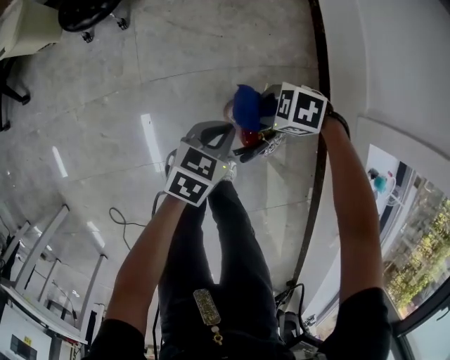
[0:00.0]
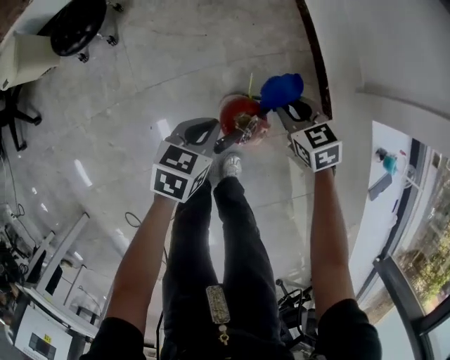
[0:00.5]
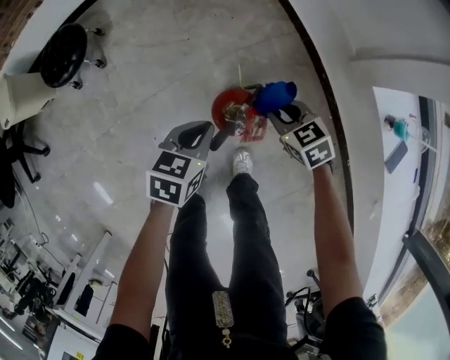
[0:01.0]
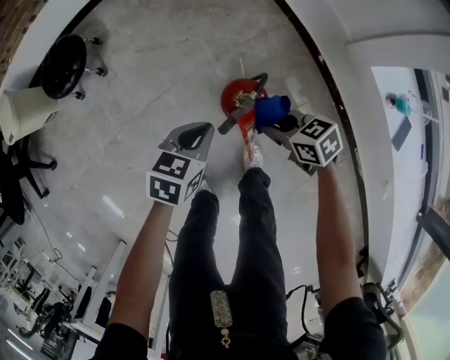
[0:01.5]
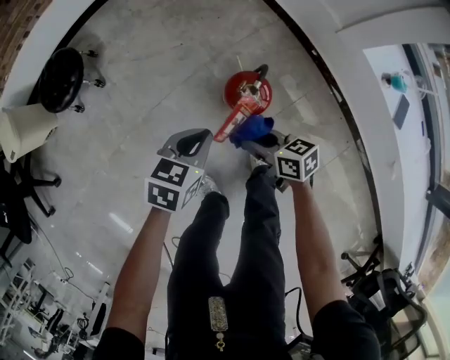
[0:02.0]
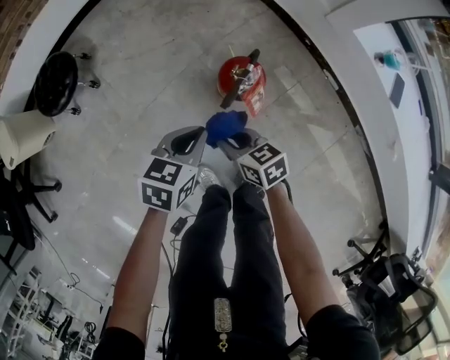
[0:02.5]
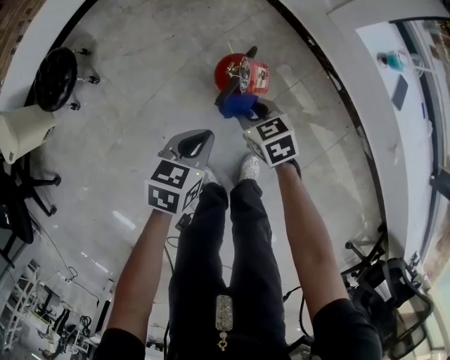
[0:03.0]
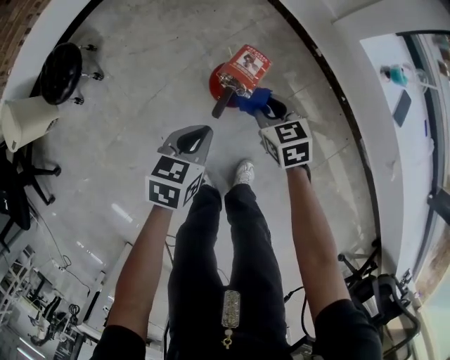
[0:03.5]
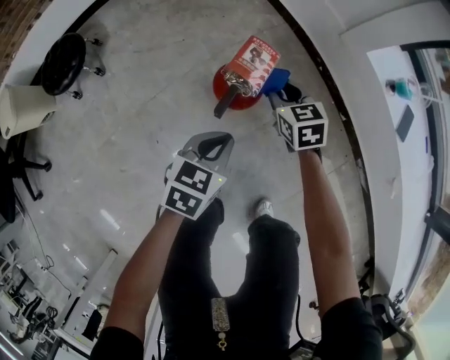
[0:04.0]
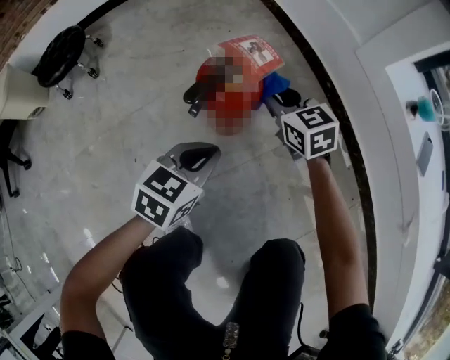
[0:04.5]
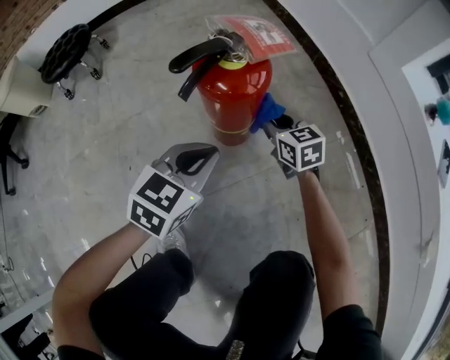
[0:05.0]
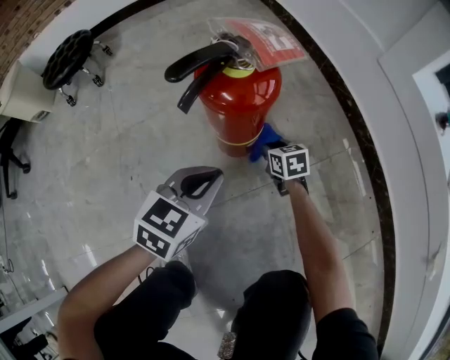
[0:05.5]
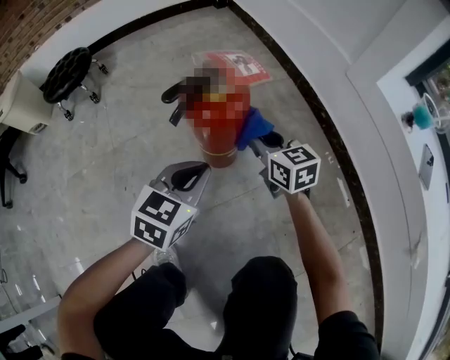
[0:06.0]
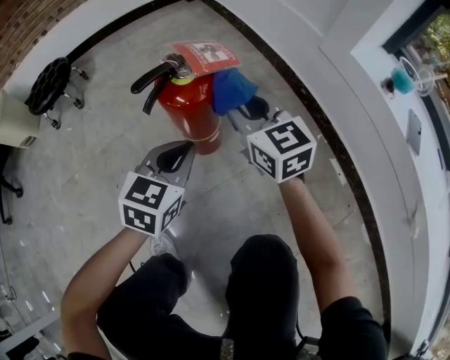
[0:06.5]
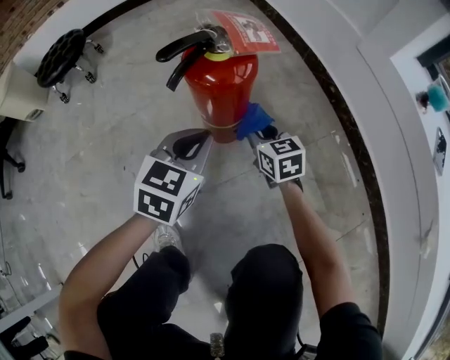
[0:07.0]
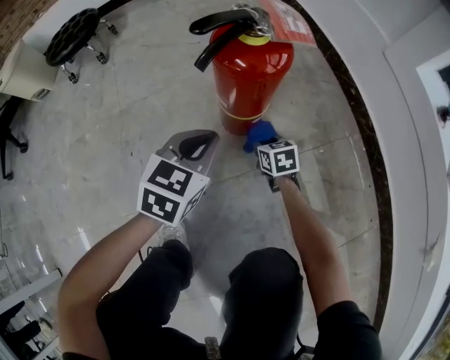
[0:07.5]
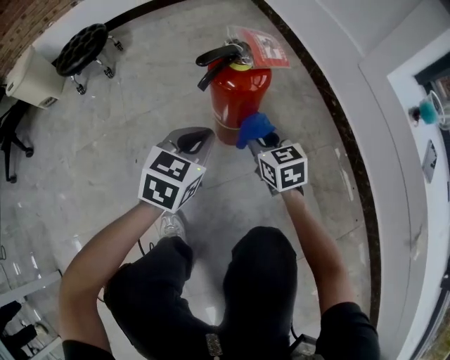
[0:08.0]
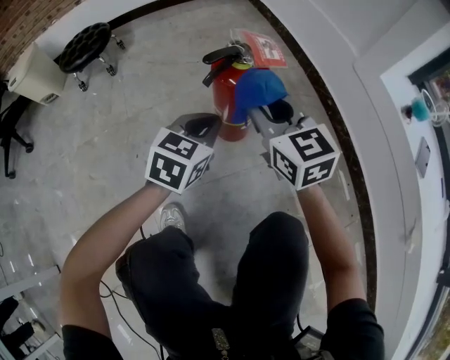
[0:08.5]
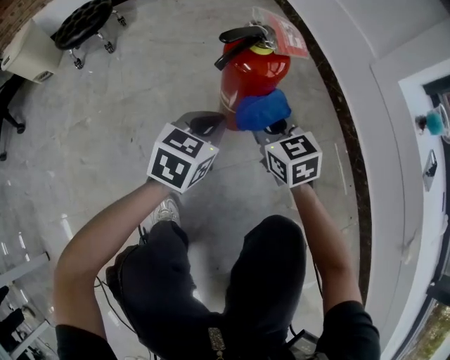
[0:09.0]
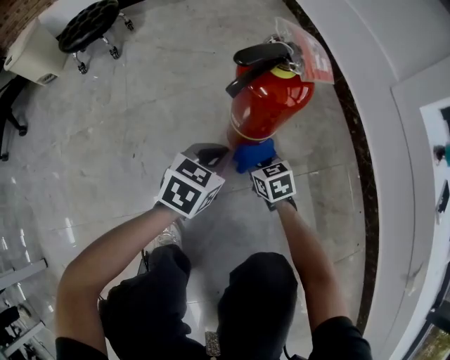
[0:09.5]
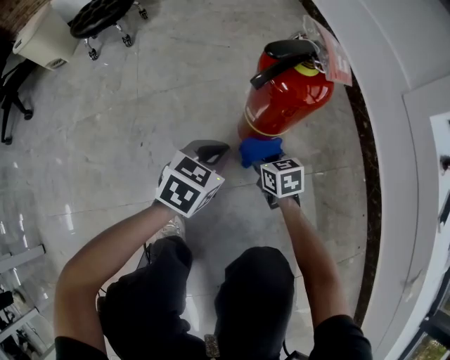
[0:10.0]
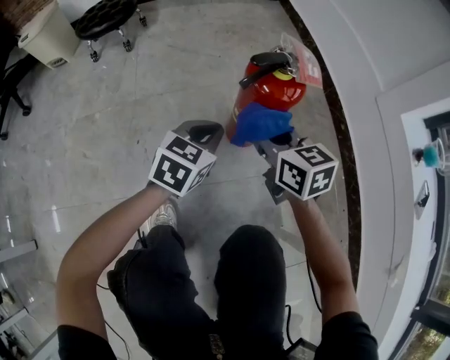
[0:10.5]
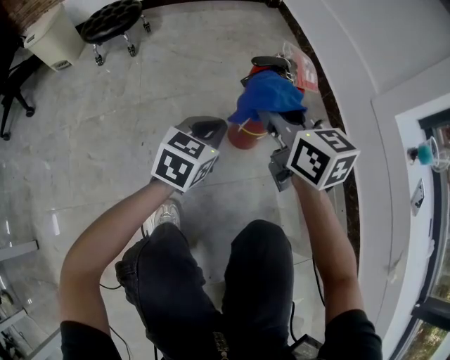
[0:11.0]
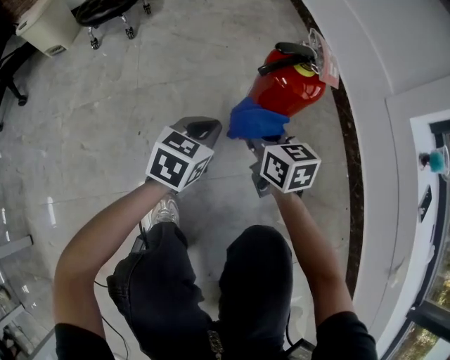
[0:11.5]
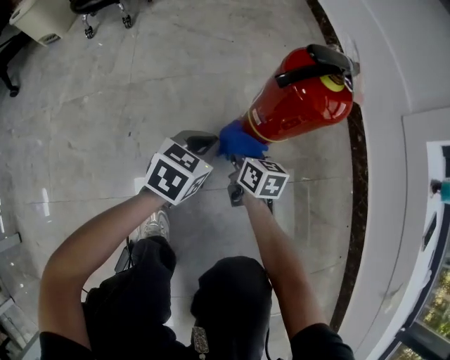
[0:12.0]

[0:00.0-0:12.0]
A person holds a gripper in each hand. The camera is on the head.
0:00.0 to 0:02.0: The right gripper changes place by approximately 15 cm, and changes its angle by roughly 90 degrees; the left gripper changes place by some 5 cm, and turns by about 20 degrees.
0:02.0 to 0:04.0: The left gripper travels to the right by approximately 10 cm. The right gripper heads forward and to the right, covering roughly 15 cm, and swivels some 40 degrees.
0:04.0 to 0:06.0: Both grippers travel together downward, about 15 cm. The right gripper swivels roughly 20 degrees.
0:06.0 to 0:08.0: The right gripper moves up and down over approximately 35 cm, changing direction 2 times; the left gripper reaches about 5 cm downward, then returns.
0:08.0 to 0:10.0: The two grippers go about 15 cm downward.
0:10.0 to 0:12.0: The right gripper travels upward and back again, about 35 cm each way, and turns by approximately 20 degrees; the left gripper moves roughly 10 cm upward and comes back.

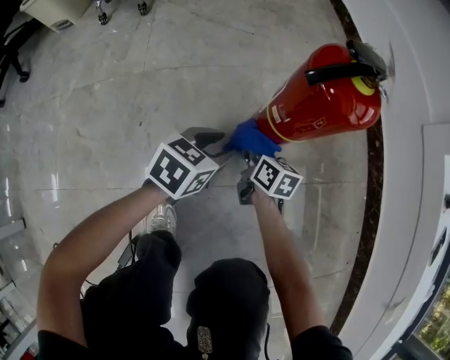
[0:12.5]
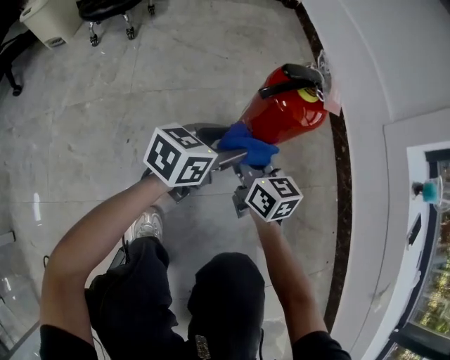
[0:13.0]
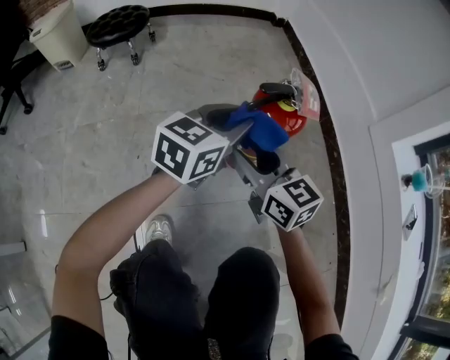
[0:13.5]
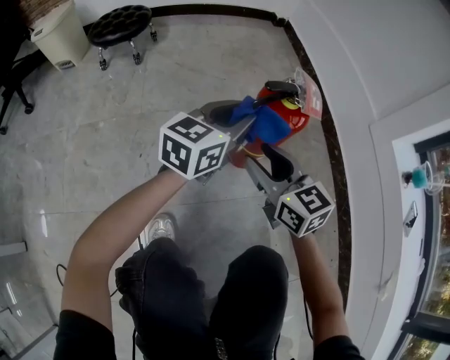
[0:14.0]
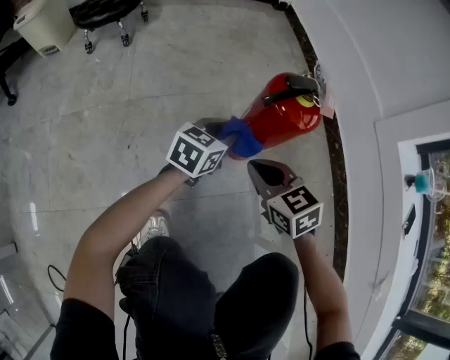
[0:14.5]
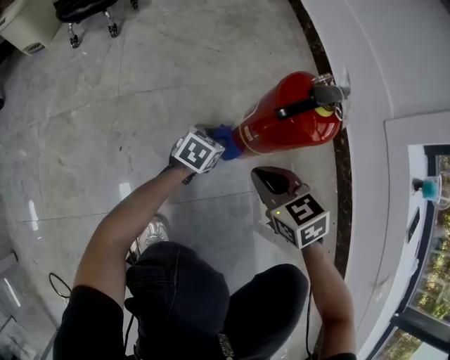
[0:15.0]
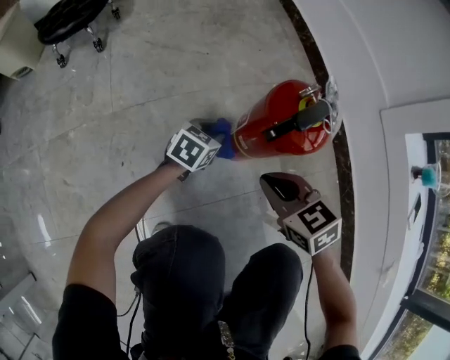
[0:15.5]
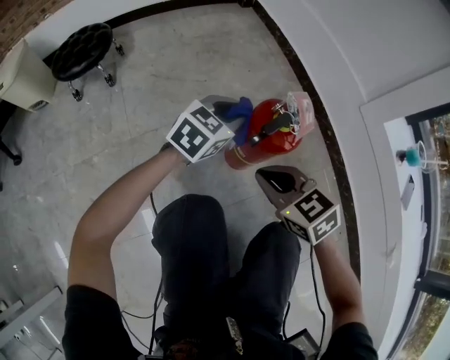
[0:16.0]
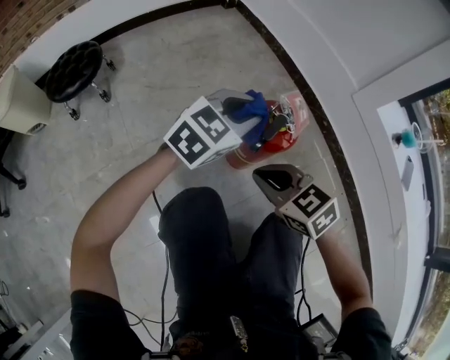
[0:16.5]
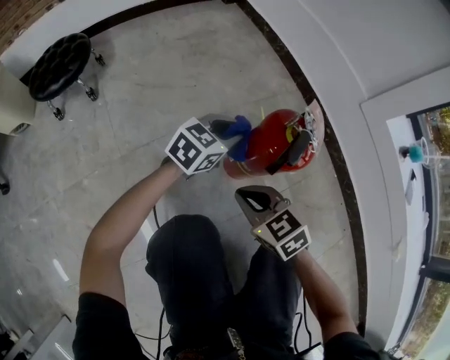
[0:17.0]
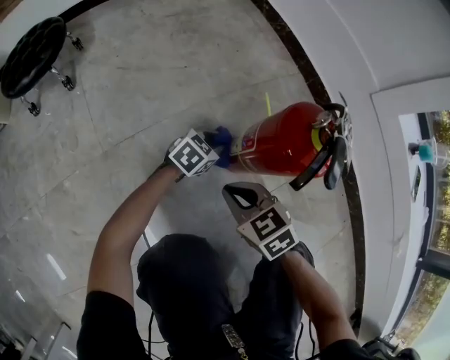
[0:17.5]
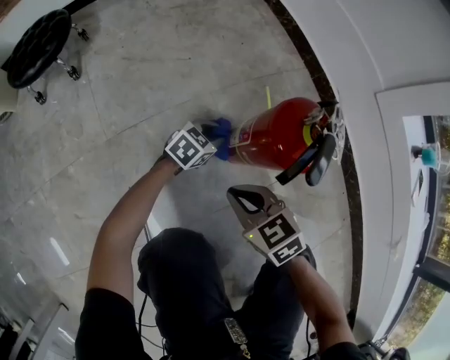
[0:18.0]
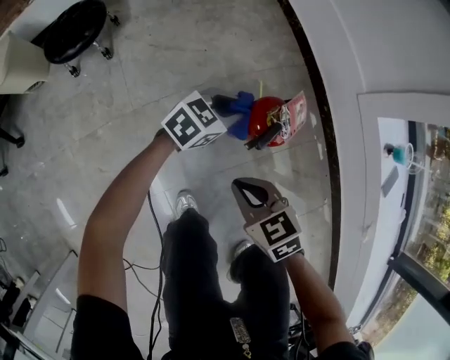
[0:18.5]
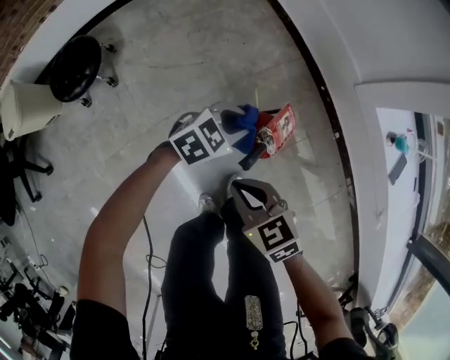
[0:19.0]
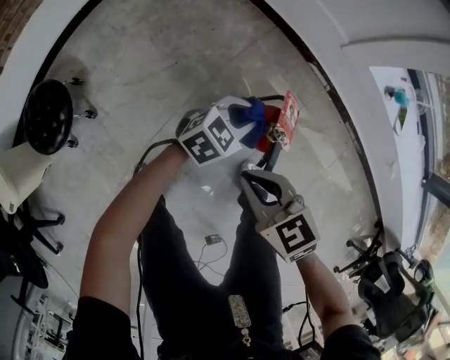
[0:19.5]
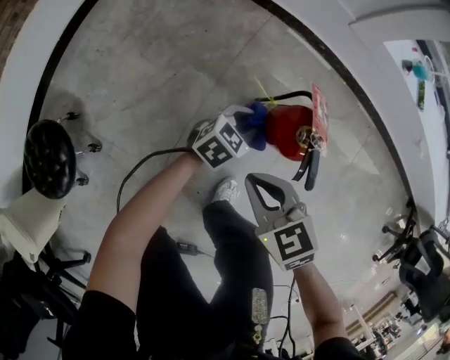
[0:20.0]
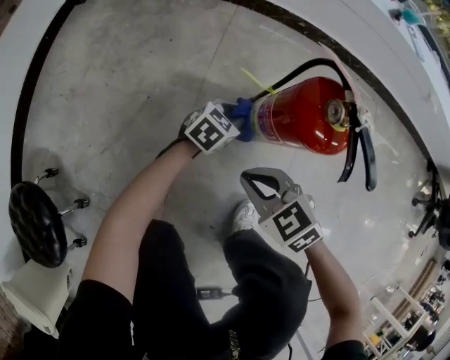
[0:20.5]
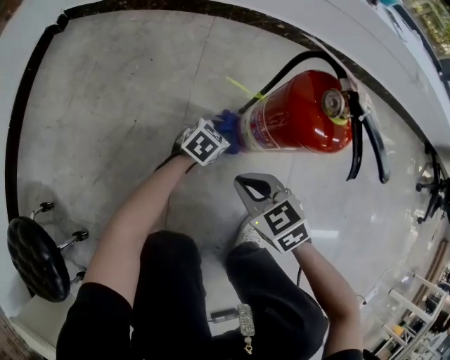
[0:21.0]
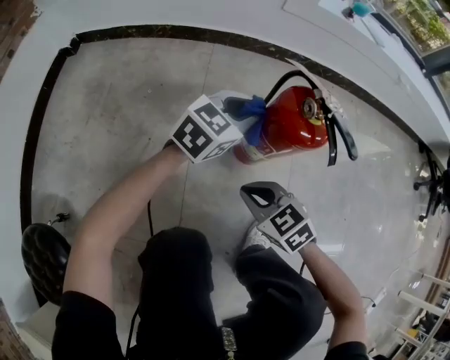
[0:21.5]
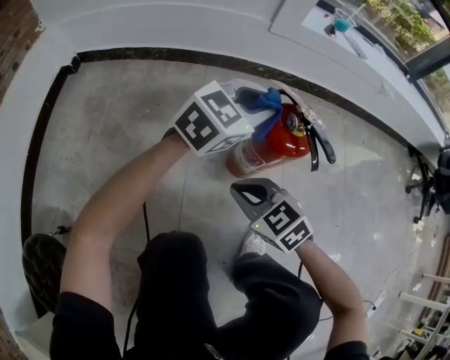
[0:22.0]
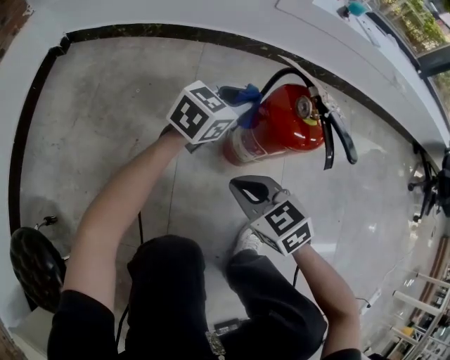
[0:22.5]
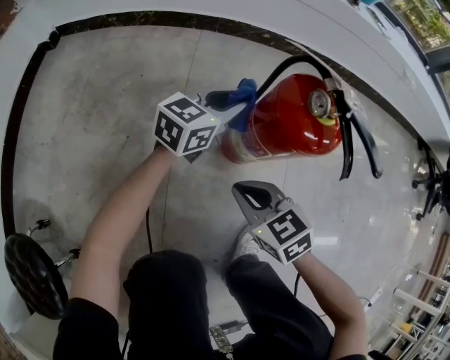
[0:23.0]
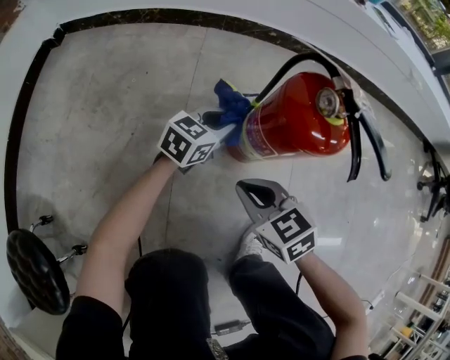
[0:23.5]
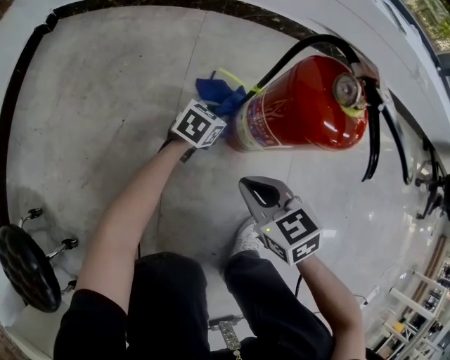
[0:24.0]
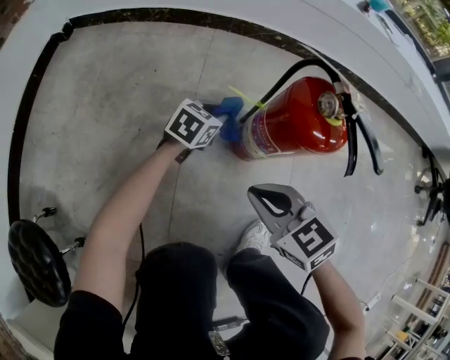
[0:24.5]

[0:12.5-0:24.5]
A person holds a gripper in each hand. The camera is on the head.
0:12.5 to 0:14.5: The right gripper is displaced upward by some 20 cm, rolls counterclockwise, seen from behind, by approximately 50 degrees, and opens, then closes once more. Meanwhile the left gripper travels forward by roughly 10 cm, reaches some 25 cm upward, then returns, and closes.
0:14.5 to 0:16.5: The left gripper moves upward, roughly 20 cm, and turns by about 40 degrees; the right gripper heads upward, covering about 10 cm.
0:16.5 to 0:18.5: The right gripper moves about 15 cm downward and comes back, while the left gripper goes downward and returns, about 35 cm each way, and changes its angle by some 20 degrees.
0:18.5 to 0:20.5: The two grippers go roughly 25 cm downward. The left gripper swivels approximately 50 degrees. The right gripper turns by about 40 degrees.
0:20.5 to 0:22.5: The left gripper goes up and down, roughly 35 cm each way, reversing 2 times, and turns by about 20 degrees. Meanwhile the right gripper moves up and down over roughly 10 cm, changing direction 2 times.
0:22.5 to 0:24.5: The right gripper travels downward and back again, some 5 cm each way. Meanwhile the left gripper moves downward, about 15 cm, and rotates roughly 20 degrees.

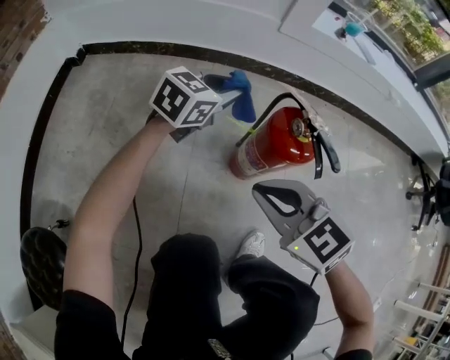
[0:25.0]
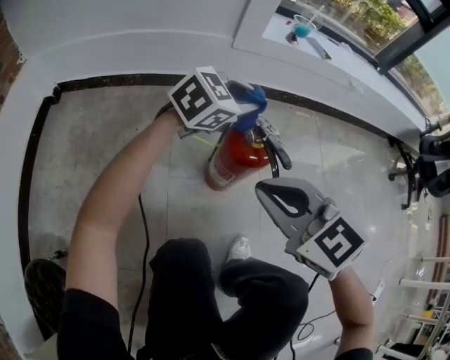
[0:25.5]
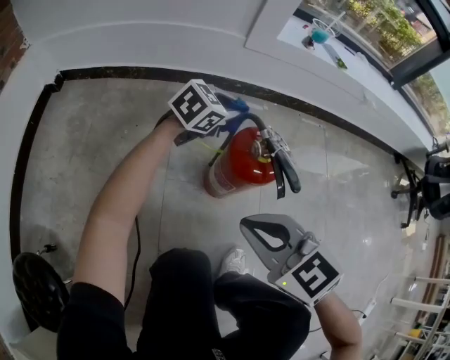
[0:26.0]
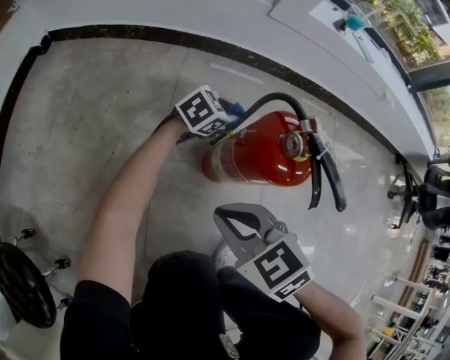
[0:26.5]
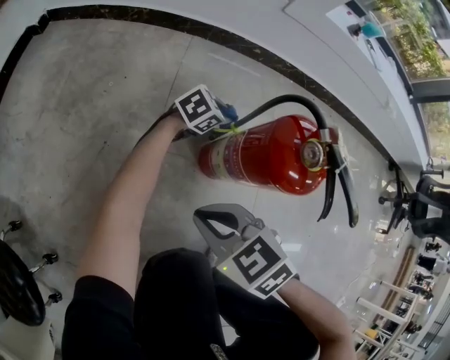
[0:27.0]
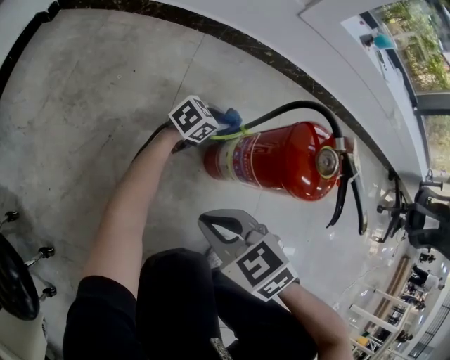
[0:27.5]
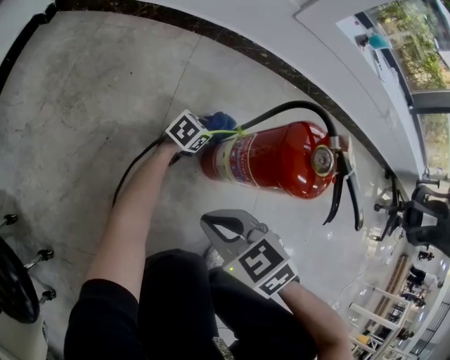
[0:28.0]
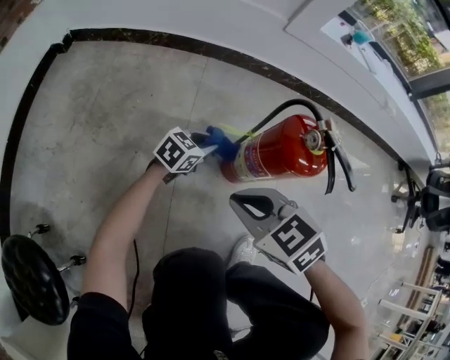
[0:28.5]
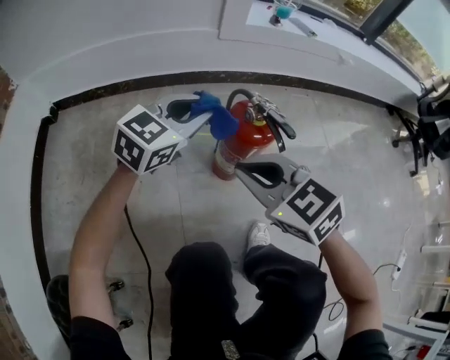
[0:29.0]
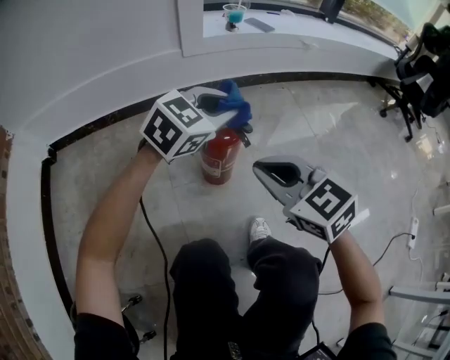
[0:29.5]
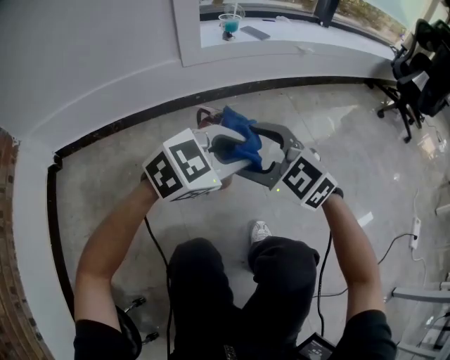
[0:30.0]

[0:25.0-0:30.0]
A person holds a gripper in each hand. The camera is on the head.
0:25.0 to 0:27.5: The left gripper is displaced downward by approximately 30 cm, while the right gripper is displaced downward by about 15 cm, and swivels about 20 degrees.
0:27.5 to 0:30.0: The right gripper travels upward by about 25 cm, turns by some 40 degrees, and opens, while the left gripper goes roughly 40 cm upward, and rolls clockwise, seen from behind, by some 50 degrees.
